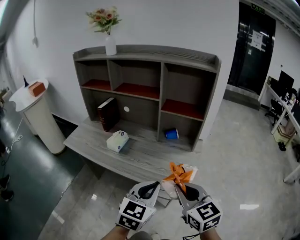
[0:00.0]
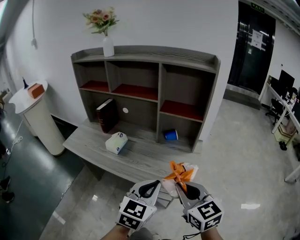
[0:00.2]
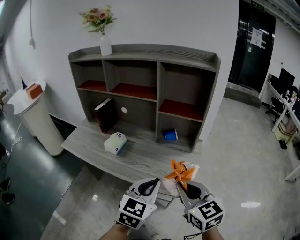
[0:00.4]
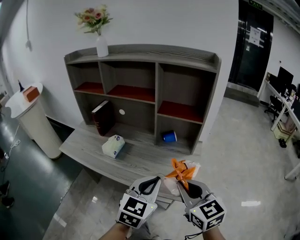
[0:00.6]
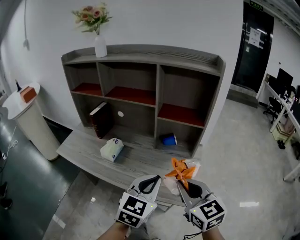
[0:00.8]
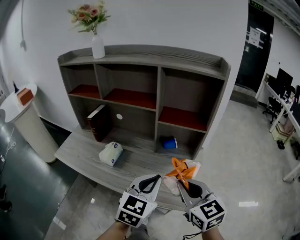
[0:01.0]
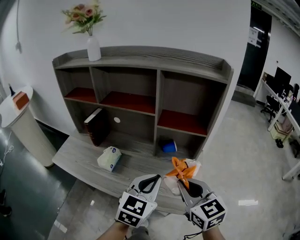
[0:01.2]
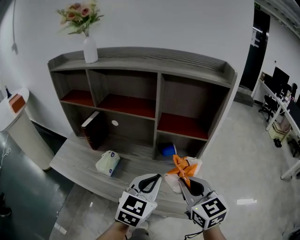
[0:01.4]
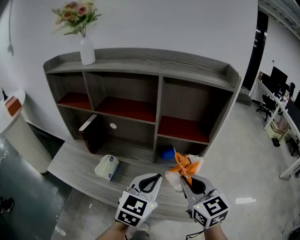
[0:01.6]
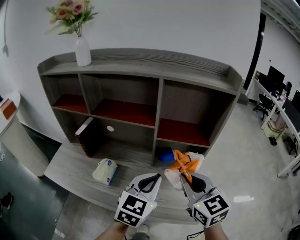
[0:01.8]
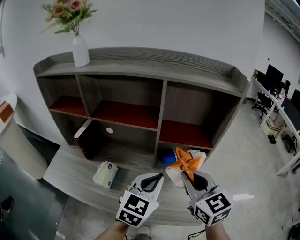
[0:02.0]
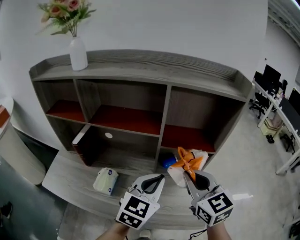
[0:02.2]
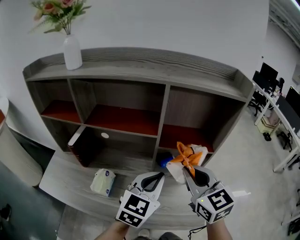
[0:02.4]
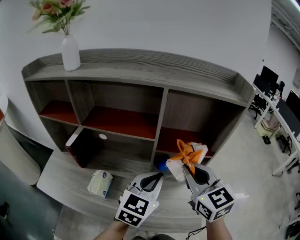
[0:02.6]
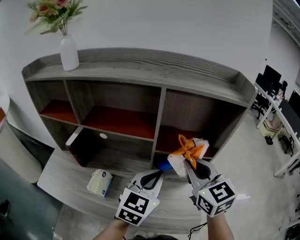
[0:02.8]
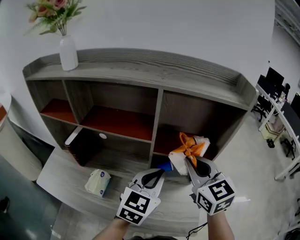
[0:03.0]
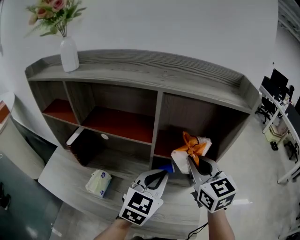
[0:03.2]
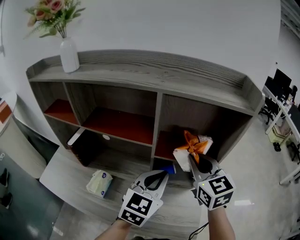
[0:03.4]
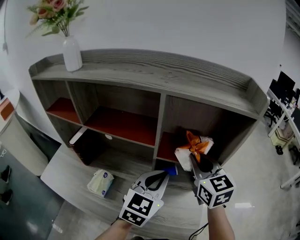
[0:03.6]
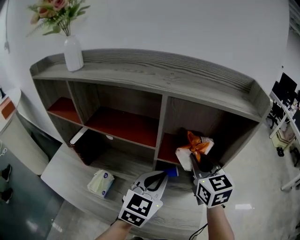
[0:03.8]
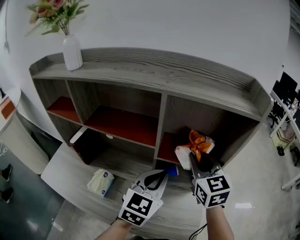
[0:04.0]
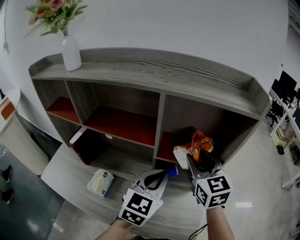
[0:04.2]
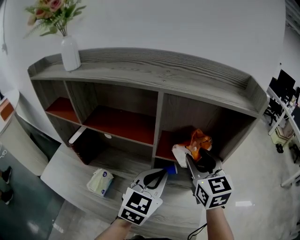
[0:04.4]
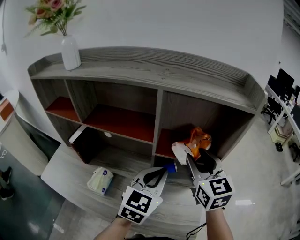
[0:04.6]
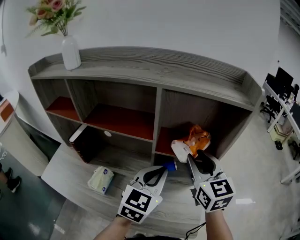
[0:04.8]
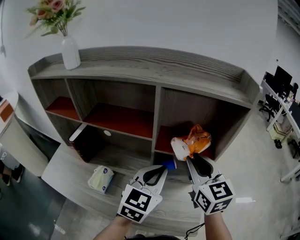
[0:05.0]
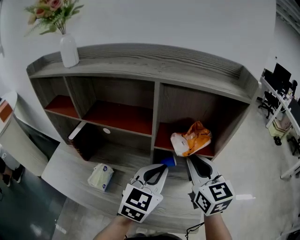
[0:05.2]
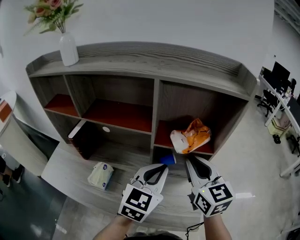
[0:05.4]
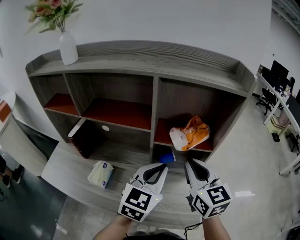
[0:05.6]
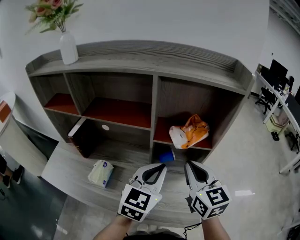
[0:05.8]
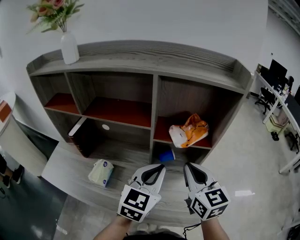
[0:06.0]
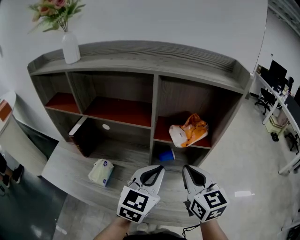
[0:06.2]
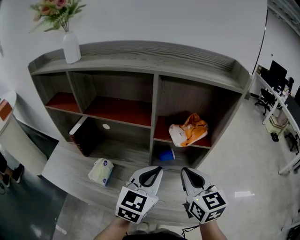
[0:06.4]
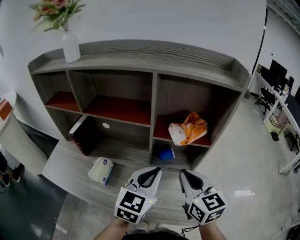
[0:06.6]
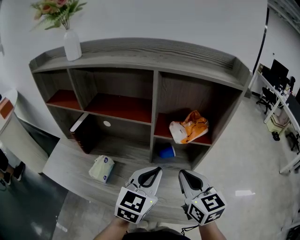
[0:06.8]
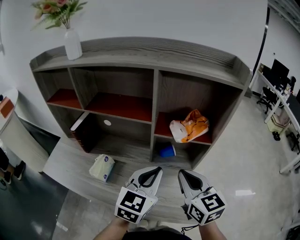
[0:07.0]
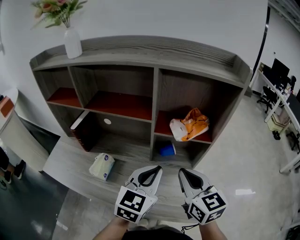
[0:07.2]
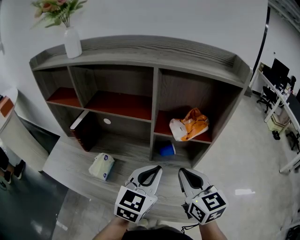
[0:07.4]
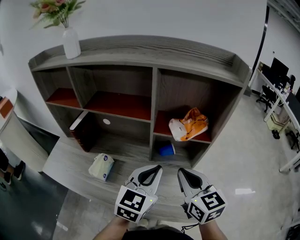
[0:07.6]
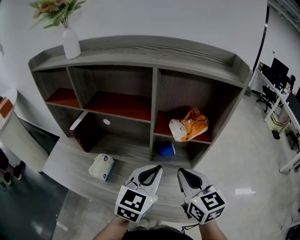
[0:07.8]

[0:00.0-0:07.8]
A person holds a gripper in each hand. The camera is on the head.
0:00.0 to 0:01.6: The grippers both shift forward by some 20 cm.
0:01.6 to 0:03.2: The two grippers go some 15 cm forward.
0:03.2 to 0:04.6: The right gripper opens.
0:04.6 to 0:06.2: The left gripper heads backward, covering approximately 5 cm; the right gripper is displaced backward by about 10 cm, and closes.
0:06.2 to 0:07.8: There are only small adjustments of the grippers.

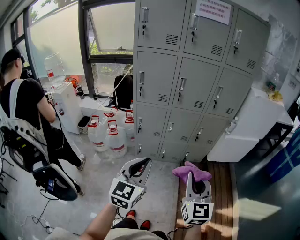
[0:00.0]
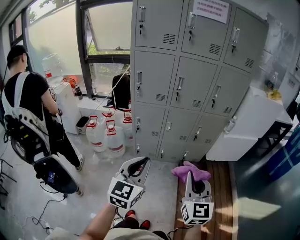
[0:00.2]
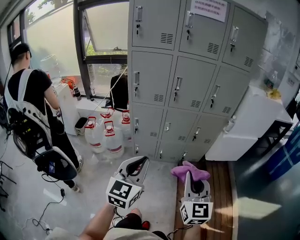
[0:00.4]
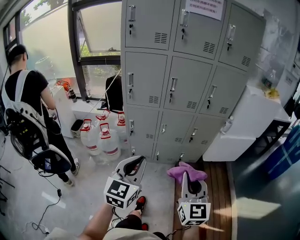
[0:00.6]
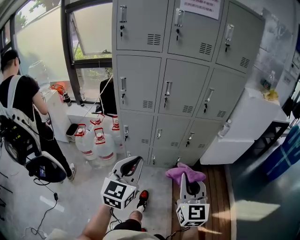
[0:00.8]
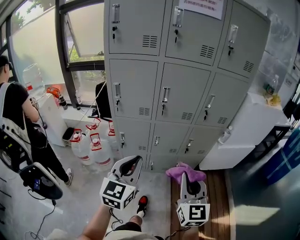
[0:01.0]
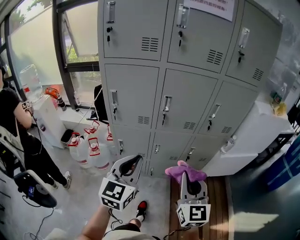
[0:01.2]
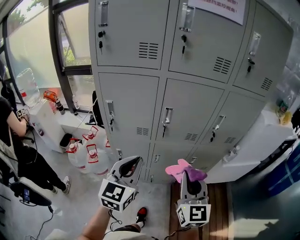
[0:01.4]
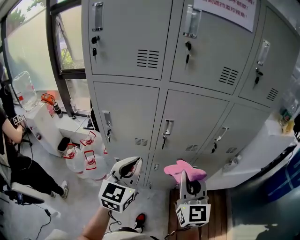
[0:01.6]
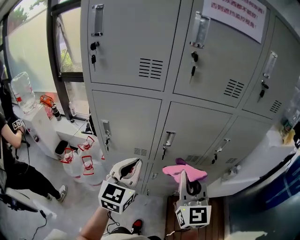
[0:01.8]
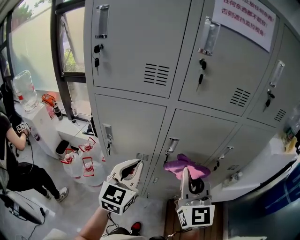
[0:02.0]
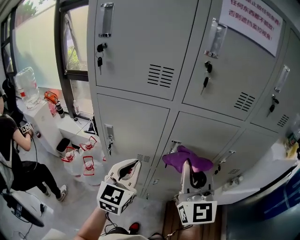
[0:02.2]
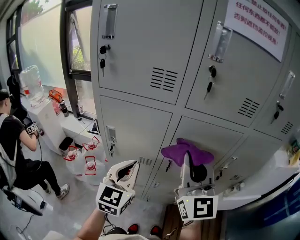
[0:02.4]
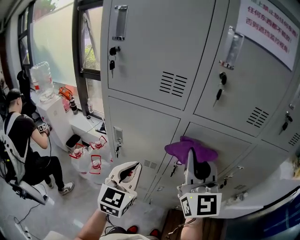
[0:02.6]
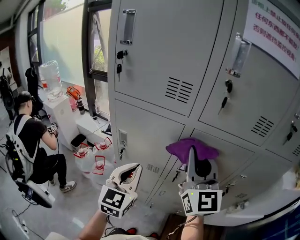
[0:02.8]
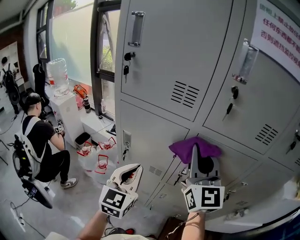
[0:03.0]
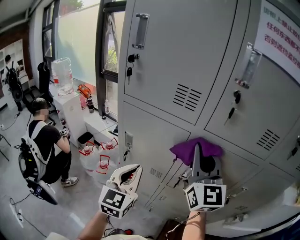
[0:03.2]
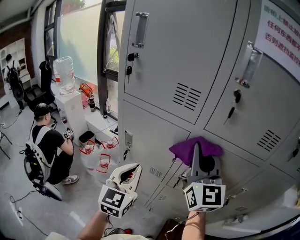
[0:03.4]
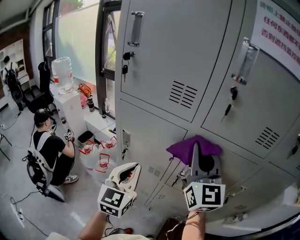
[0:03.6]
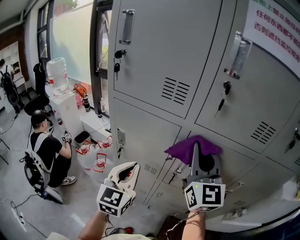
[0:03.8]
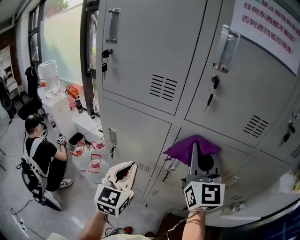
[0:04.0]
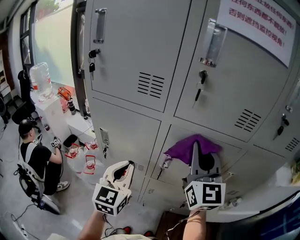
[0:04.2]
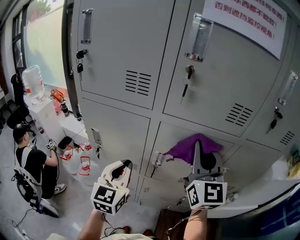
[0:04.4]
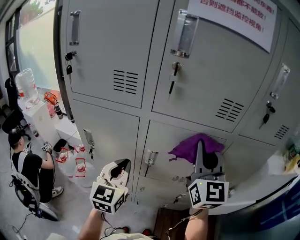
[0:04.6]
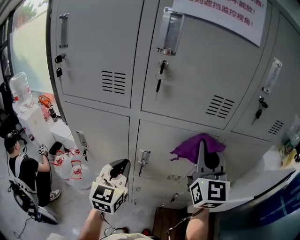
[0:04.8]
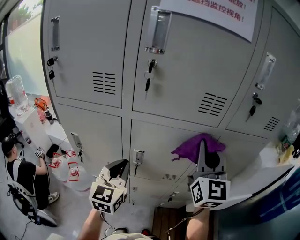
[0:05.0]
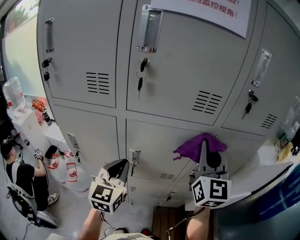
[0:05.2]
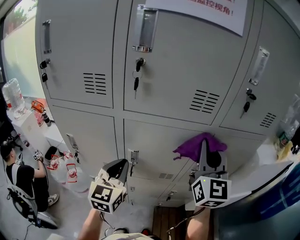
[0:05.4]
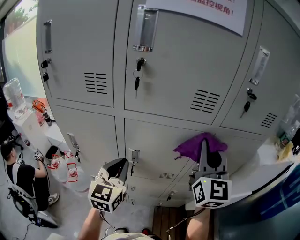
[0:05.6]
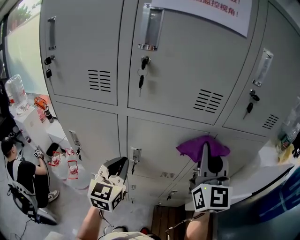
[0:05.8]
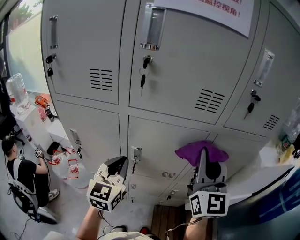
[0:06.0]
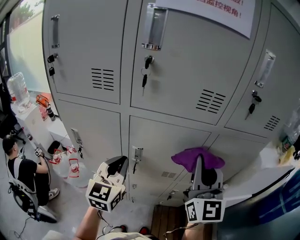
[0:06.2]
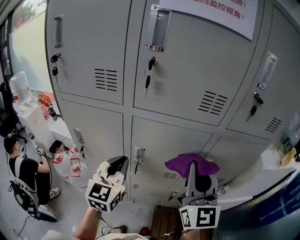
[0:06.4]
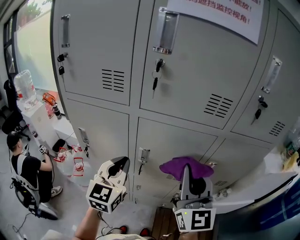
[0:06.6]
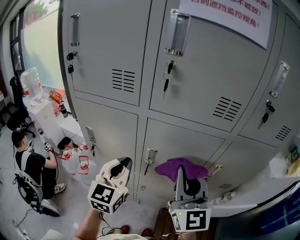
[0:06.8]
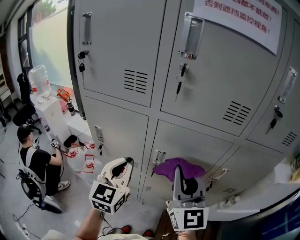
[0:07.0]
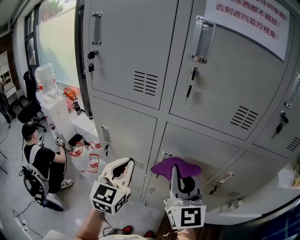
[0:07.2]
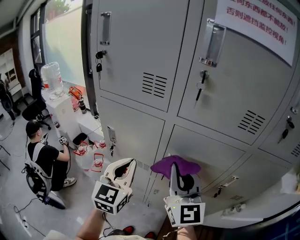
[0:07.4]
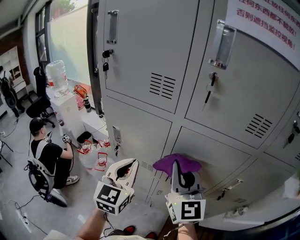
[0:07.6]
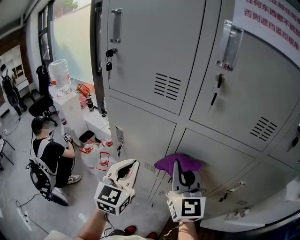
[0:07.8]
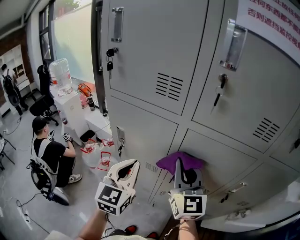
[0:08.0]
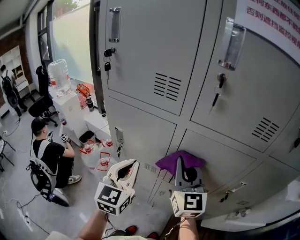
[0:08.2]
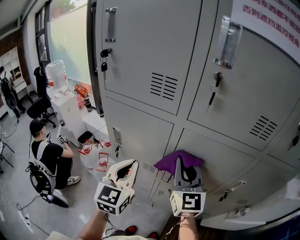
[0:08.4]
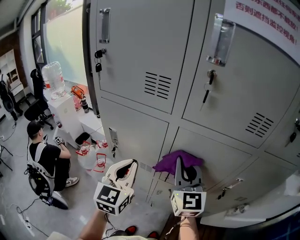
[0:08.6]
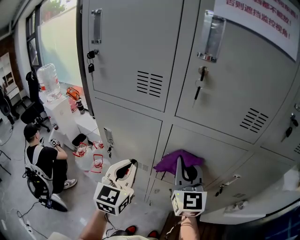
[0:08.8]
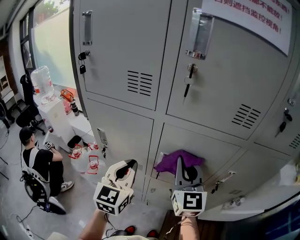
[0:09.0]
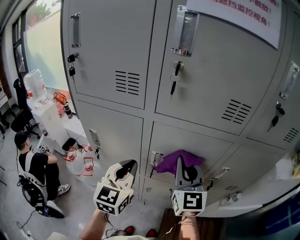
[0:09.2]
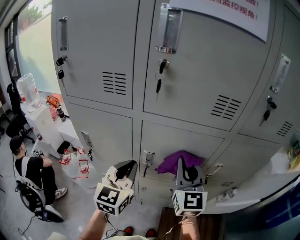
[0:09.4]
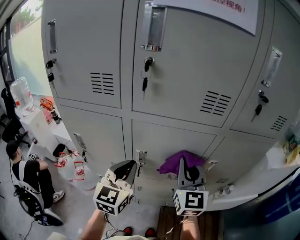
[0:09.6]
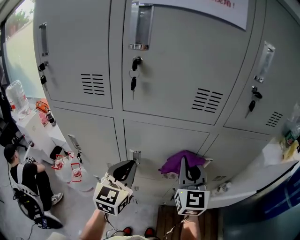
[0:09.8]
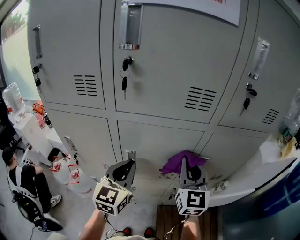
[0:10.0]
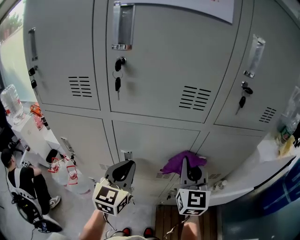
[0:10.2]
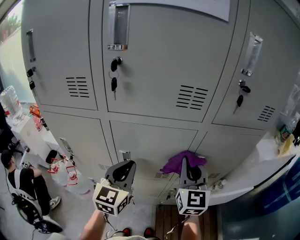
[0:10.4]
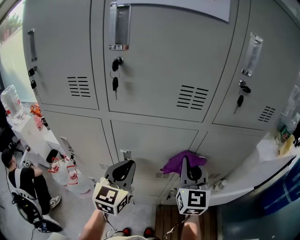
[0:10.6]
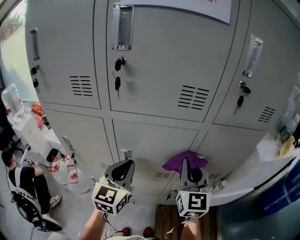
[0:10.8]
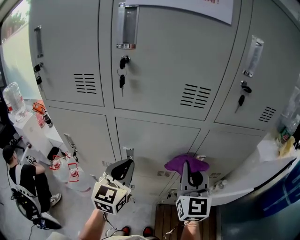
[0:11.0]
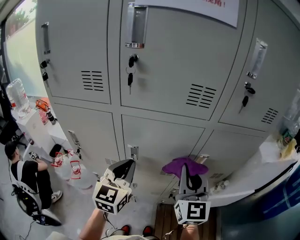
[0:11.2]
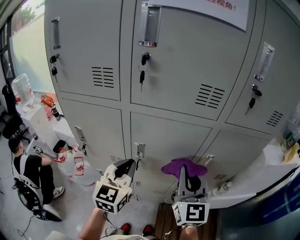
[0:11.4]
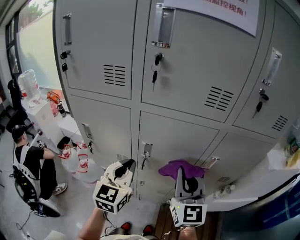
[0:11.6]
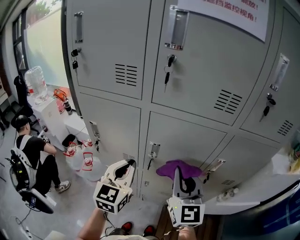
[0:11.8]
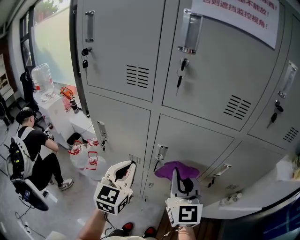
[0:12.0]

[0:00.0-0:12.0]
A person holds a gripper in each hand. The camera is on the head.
0:00.0 to 0:01.6: Both grippers move forward, approximately 40 cm.
0:01.6 to 0:03.0: The right gripper shifts about 25 cm forward and upward, and swivels about 20 degrees; the left gripper heads forward and to the left, covering approximately 10 cm, and swivels roughly 20 degrees.
0:03.0 to 0:04.4: The right gripper heads to the right, covering some 10 cm. Meanwhile the left gripper moves to the right, about 5 cm.
0:04.4 to 0:06.0: The left gripper goes some 5 cm to the right, while the right gripper goes about 10 cm to the right.
0:06.0 to 0:07.6: The left gripper goes roughly 10 cm to the left; the right gripper travels to the left by roughly 20 cm, and rotates approximately 30 degrees.
0:07.6 to 0:09.0: The right gripper goes roughly 5 cm to the right.
0:09.0 to 0:10.4: The two grippers go approximately 15 cm to the right.
0:10.4 to 0:12.0: Both grippers travel together to the left and backward, about 15 cm. The right gripper turns by about 20 degrees.

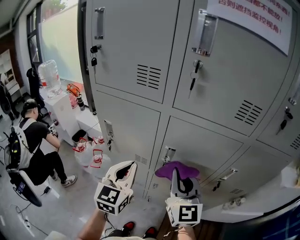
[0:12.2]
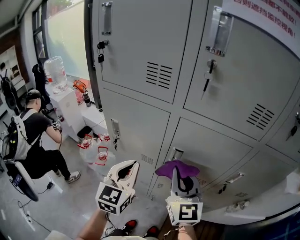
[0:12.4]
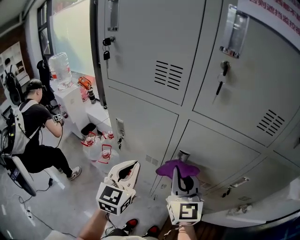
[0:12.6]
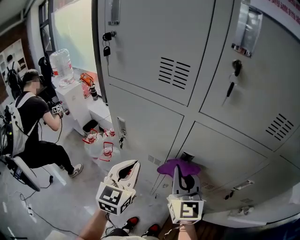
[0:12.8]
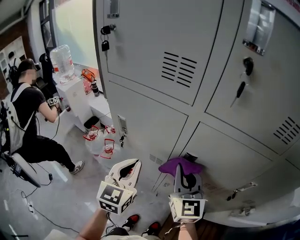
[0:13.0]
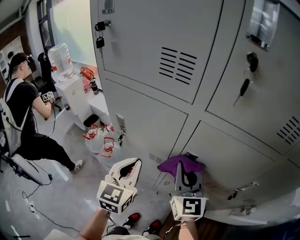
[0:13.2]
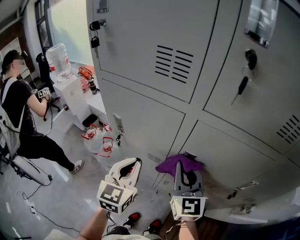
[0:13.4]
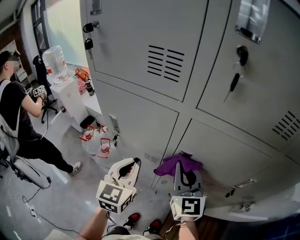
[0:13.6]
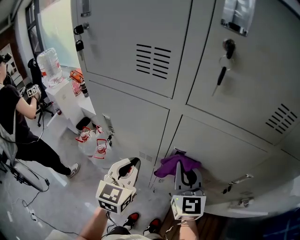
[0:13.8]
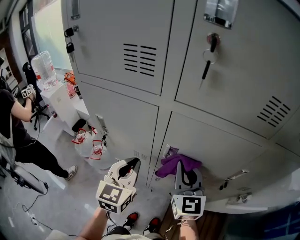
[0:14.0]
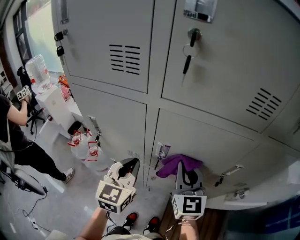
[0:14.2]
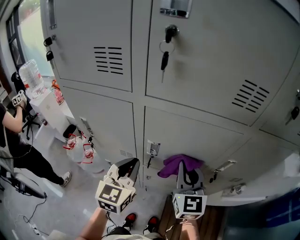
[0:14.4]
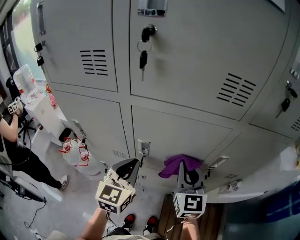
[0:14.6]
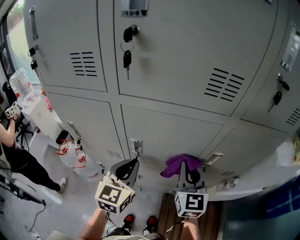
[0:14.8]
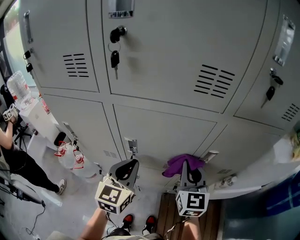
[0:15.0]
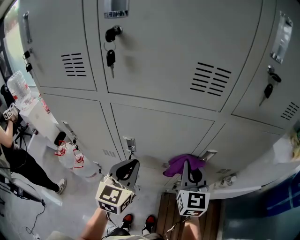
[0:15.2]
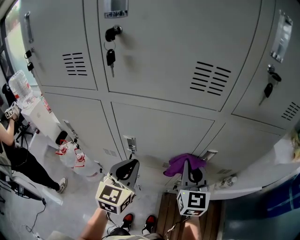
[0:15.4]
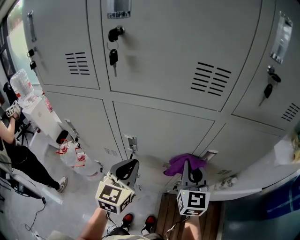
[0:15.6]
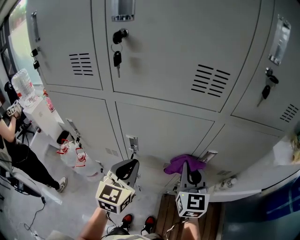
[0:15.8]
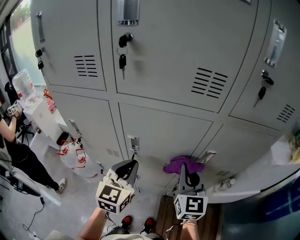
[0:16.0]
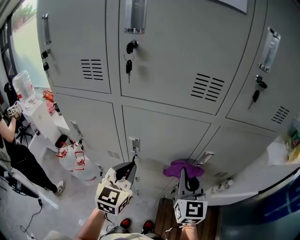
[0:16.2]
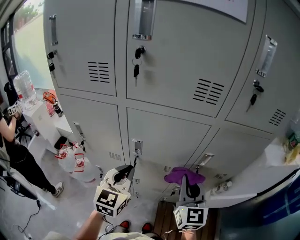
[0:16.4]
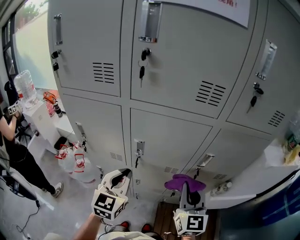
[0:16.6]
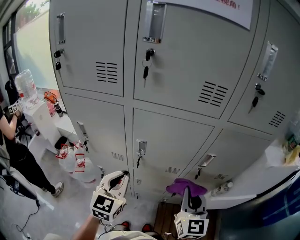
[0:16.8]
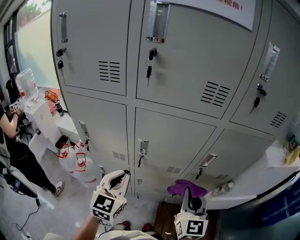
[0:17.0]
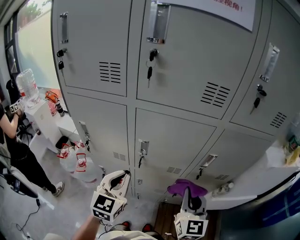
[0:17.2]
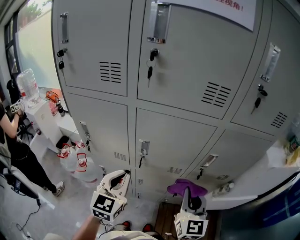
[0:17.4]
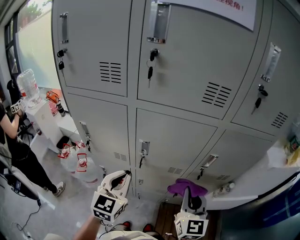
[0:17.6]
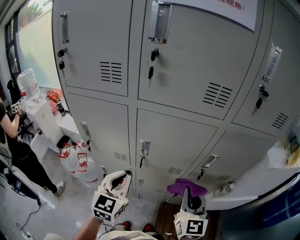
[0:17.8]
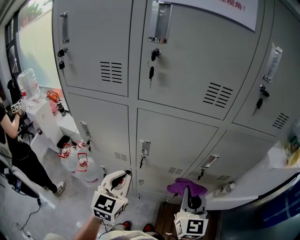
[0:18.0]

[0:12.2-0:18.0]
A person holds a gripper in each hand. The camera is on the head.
0:12.2 to 0:13.6: The right gripper heads forward and downward, covering about 10 cm, while the left gripper changes place by roughly 5 cm.
0:13.6 to 0:15.0: The two grippers go roughly 20 cm to the right. The right gripper turns by approximately 20 degrees.
0:15.0 to 0:16.6: The left gripper travels backward by about 5 cm. Meanwhile the right gripper shifts approximately 10 cm backward.
0:16.6 to 0:18.0: The grippers move only a little.
